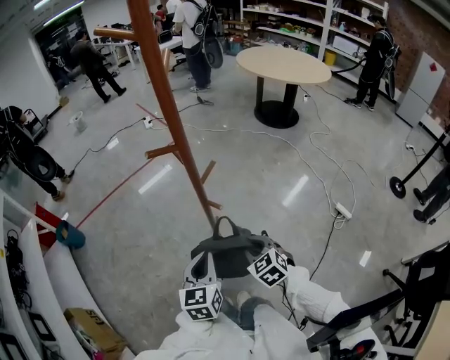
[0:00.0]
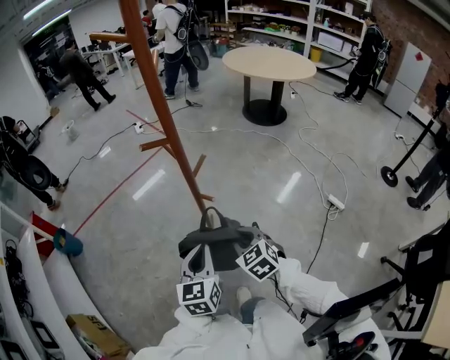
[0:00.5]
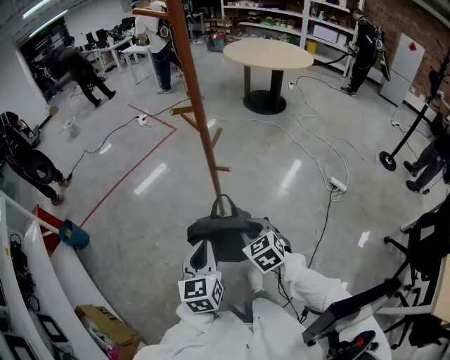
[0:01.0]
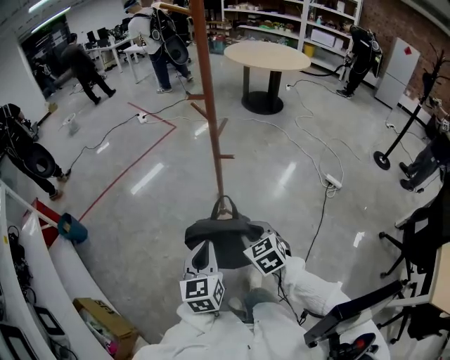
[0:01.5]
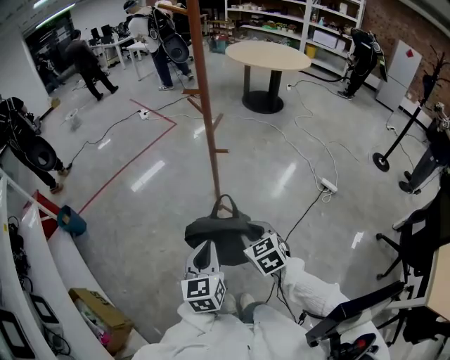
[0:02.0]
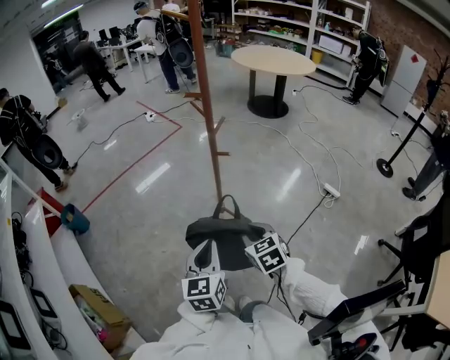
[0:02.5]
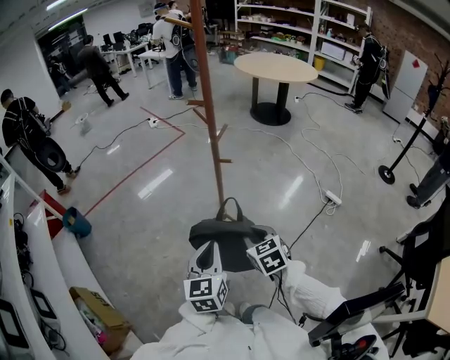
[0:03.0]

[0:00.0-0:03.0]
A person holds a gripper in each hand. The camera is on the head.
0:00.0 to 0:01.5: Both grippers move backward and to the left, roughly 20 cm.
0:01.5 to 0:03.0: The left gripper ends up about 5 cm from where it was.

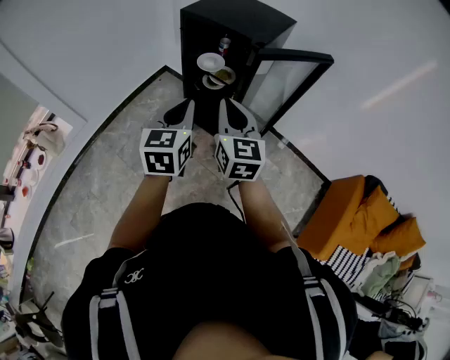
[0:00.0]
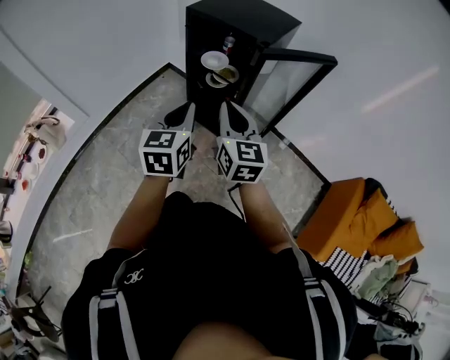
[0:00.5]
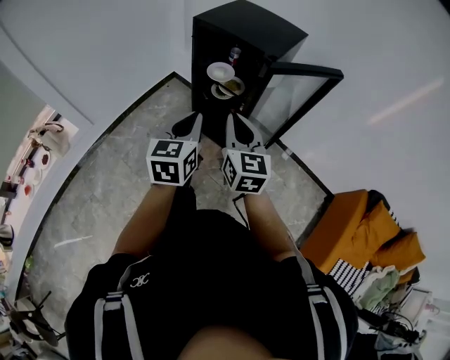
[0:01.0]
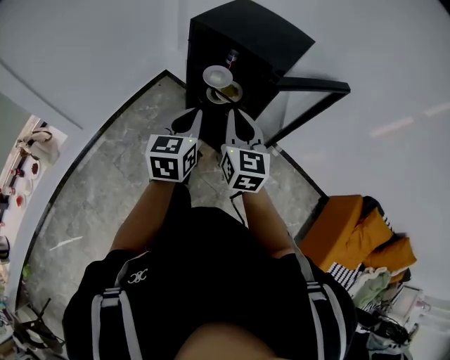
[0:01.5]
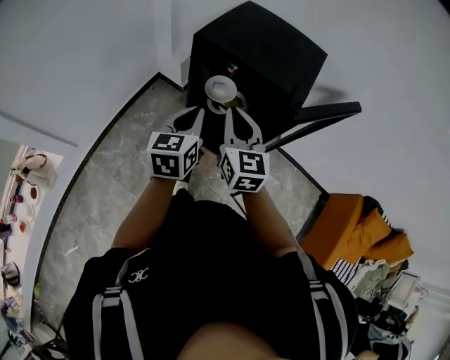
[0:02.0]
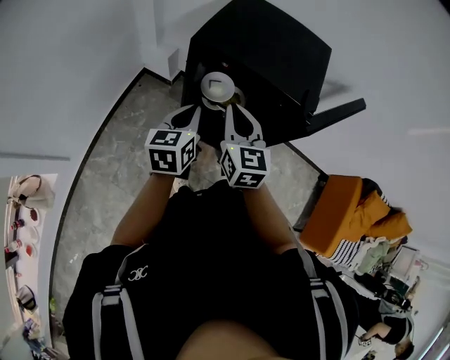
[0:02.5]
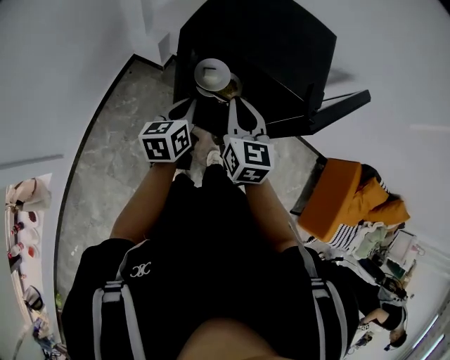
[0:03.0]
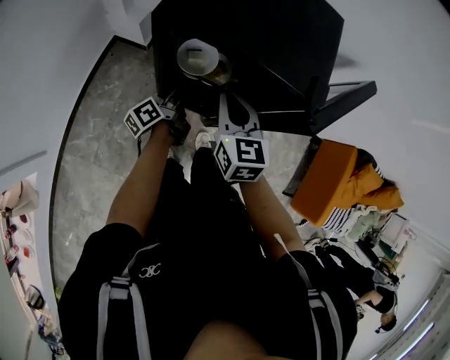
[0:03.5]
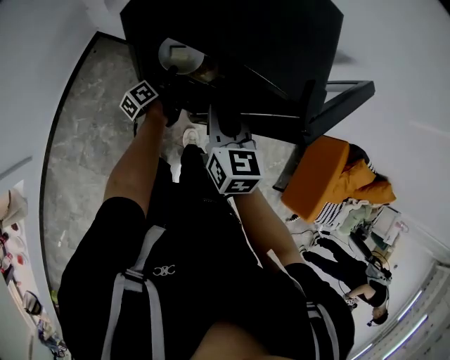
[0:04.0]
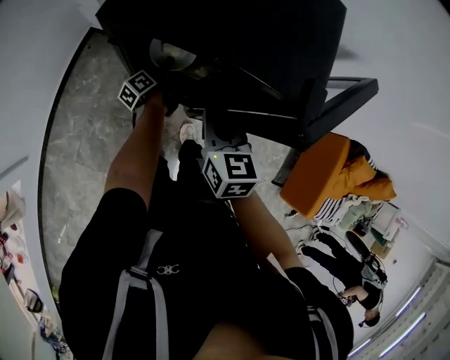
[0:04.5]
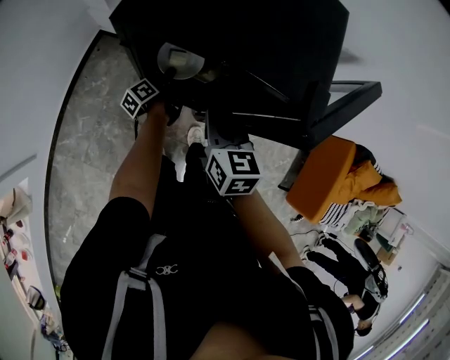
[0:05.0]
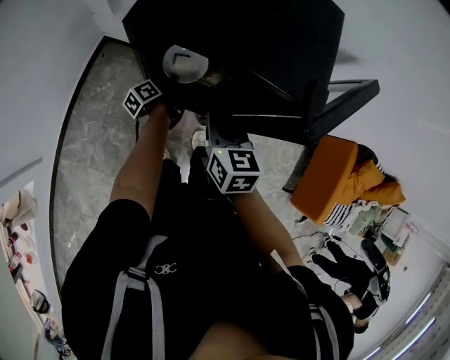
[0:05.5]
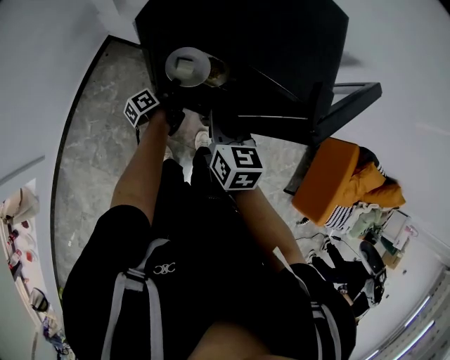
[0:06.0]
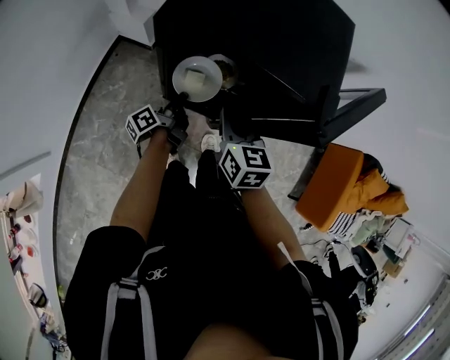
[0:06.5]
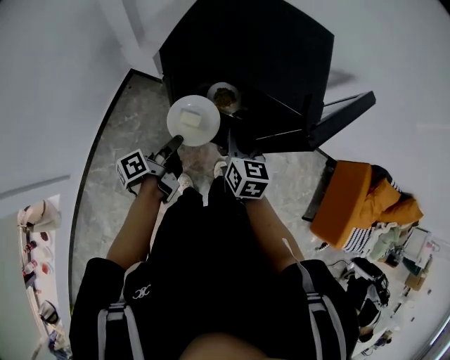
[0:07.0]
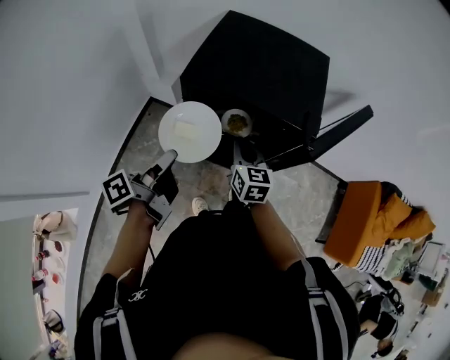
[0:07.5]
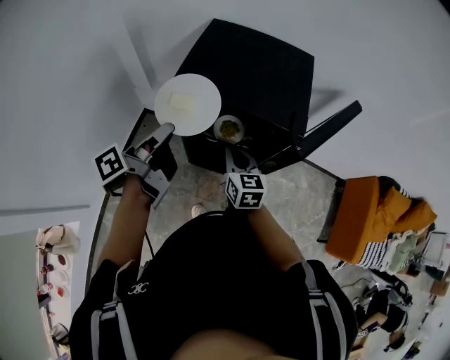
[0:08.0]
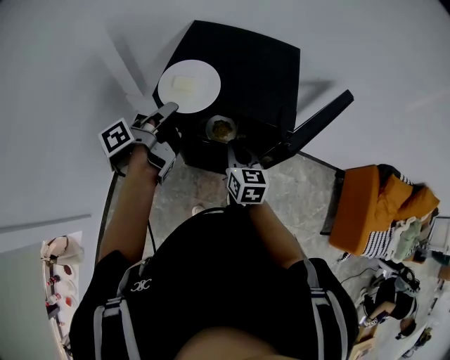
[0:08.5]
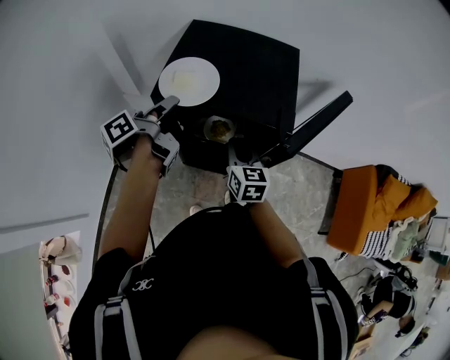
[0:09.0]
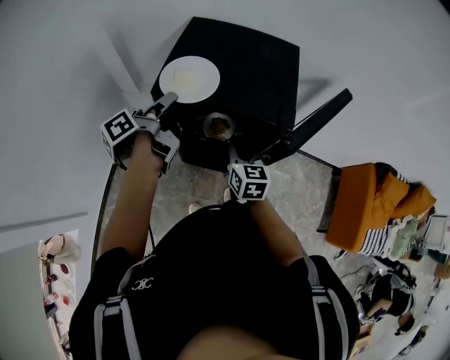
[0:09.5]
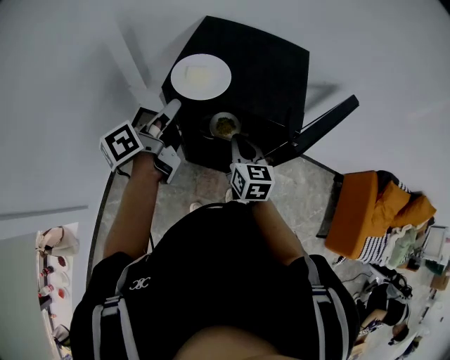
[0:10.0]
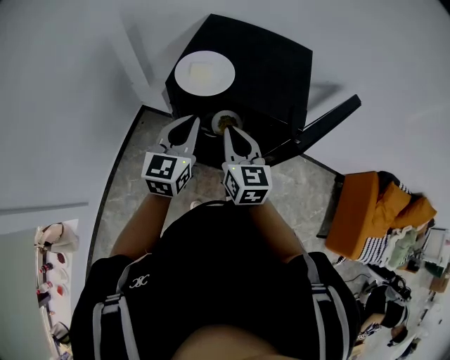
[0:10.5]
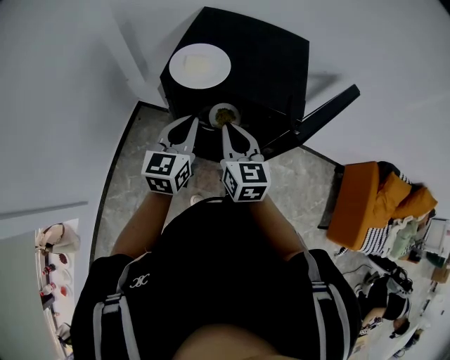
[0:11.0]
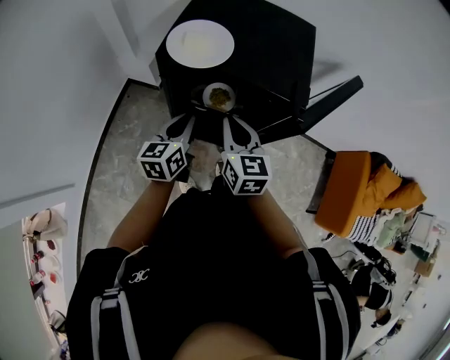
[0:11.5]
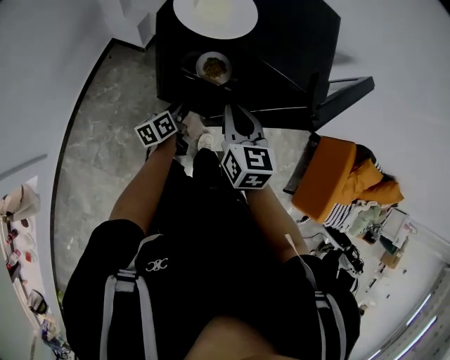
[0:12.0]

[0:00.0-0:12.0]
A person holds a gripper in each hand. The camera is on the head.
0:00.0 to 0:02.0: The left gripper goes approximately 25 cm forward. Meanwhile the right gripper is displaced forward and to the left by approximately 25 cm.
0:02.0 to 0:04.0: The right gripper moves downward and forward, about 15 cm, and swivels approximately 20 degrees, while the left gripper travels downward and forward by approximately 40 cm, rolls counterclockwise, seen from behind, by roughly 70 degrees, and opens up.
0:04.0 to 0:06.0: The left gripper closes its fingers.
0:06.0 to 0:08.0: The left gripper shifts some 40 cm upward, and turns by some 20 degrees.
0:08.0 to 0:10.0: The left gripper goes about 5 cm forward.
0:10.0 to 0:12.0: The left gripper is displaced downward by some 35 cm, rotates roughly 20 degrees, and opens, while the right gripper moves approximately 5 cm upward and comes back.

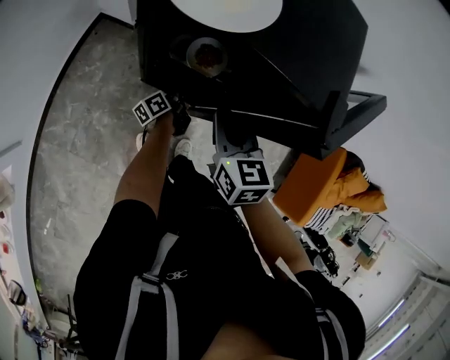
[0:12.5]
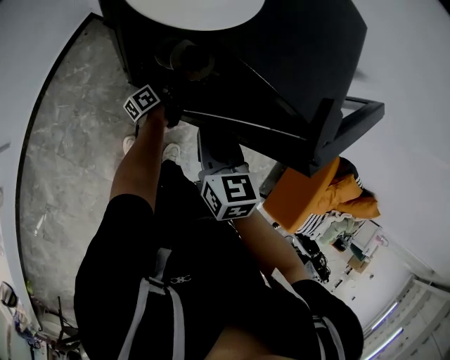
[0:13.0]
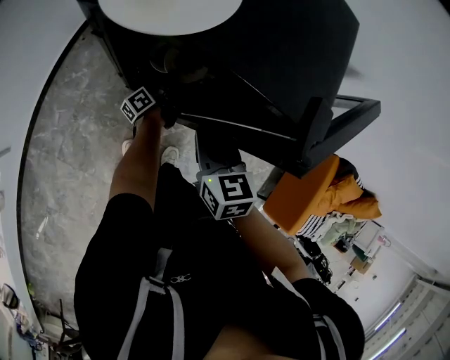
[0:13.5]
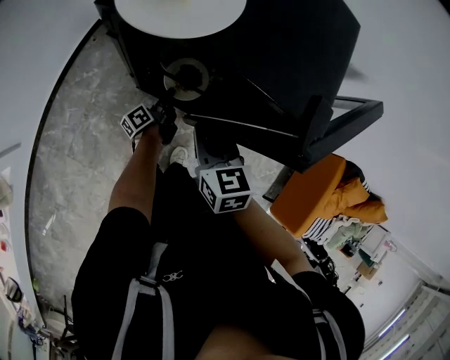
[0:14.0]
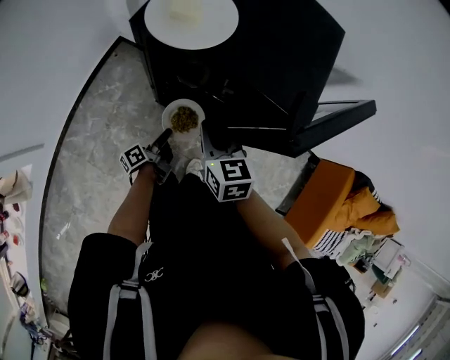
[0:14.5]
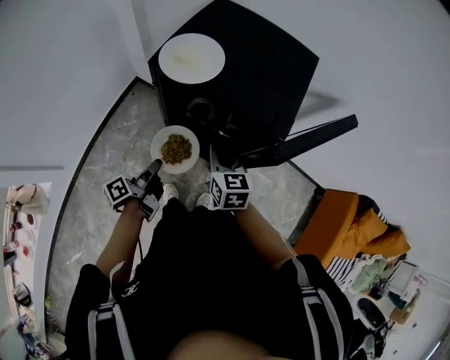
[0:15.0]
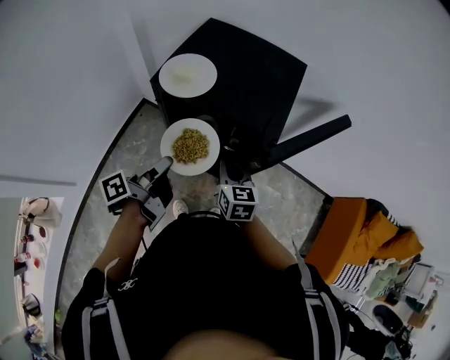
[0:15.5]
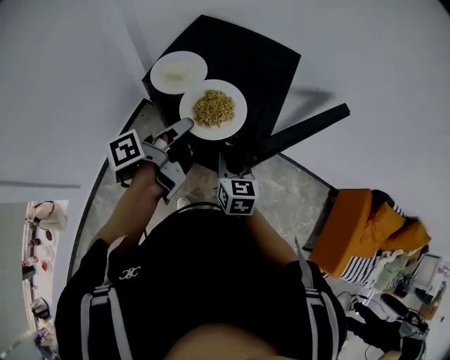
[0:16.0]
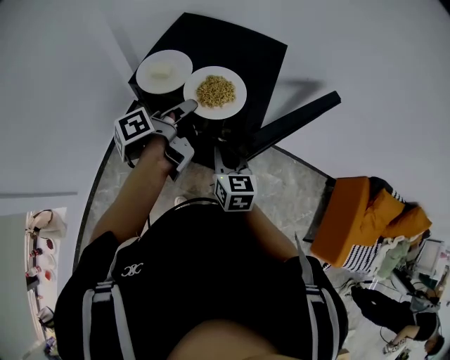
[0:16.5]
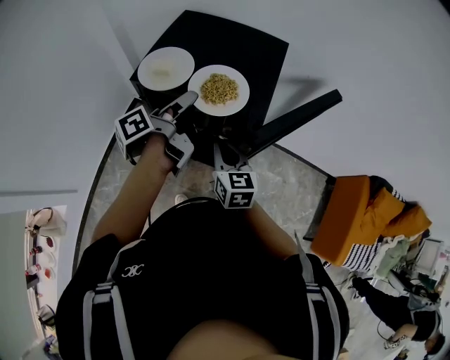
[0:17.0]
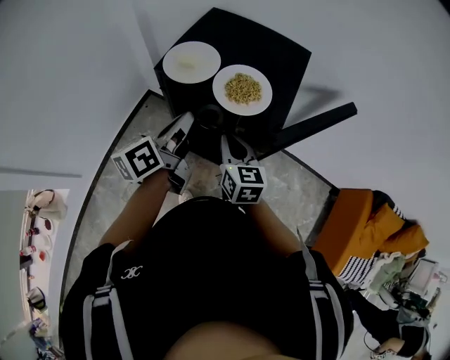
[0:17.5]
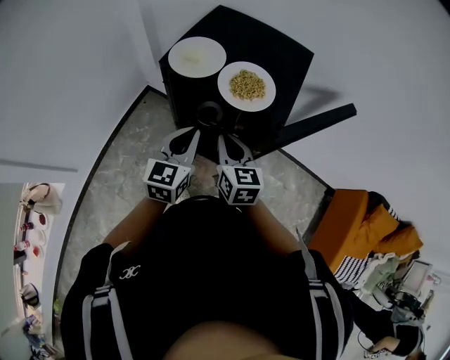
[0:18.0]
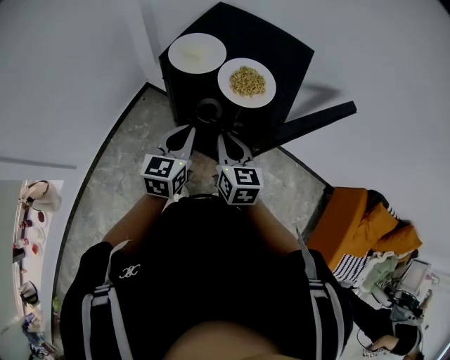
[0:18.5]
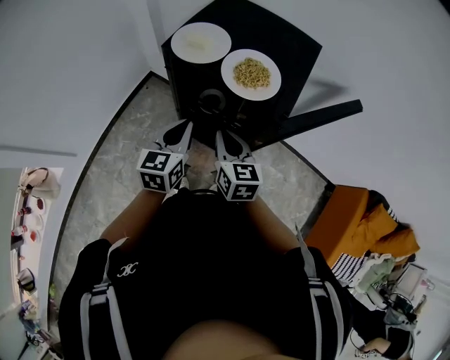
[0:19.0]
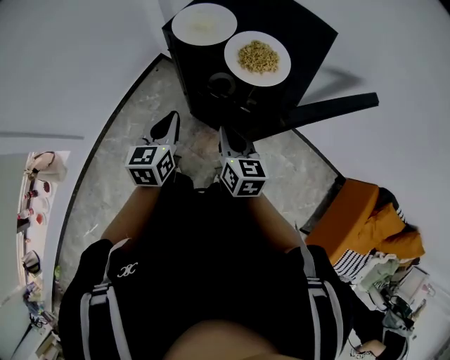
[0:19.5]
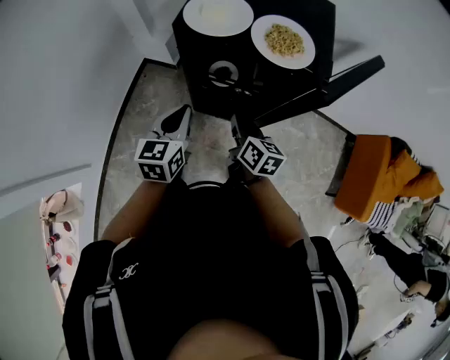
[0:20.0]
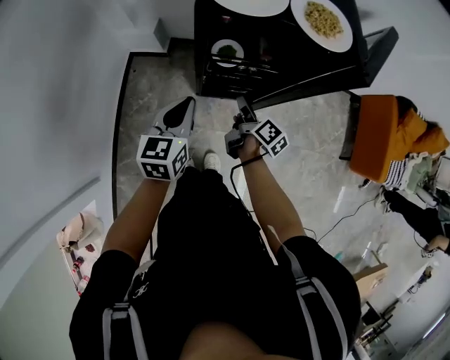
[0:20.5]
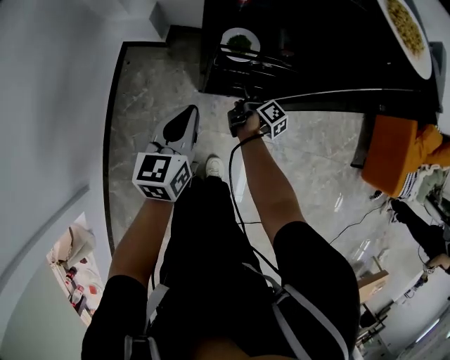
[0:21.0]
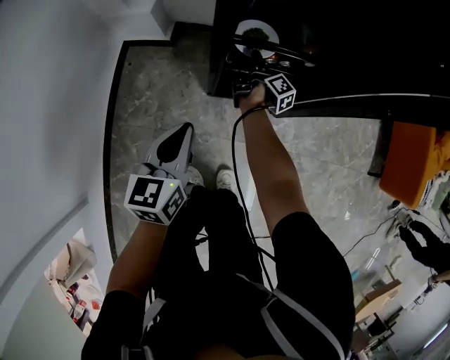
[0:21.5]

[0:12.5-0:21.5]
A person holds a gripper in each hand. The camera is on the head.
0:12.5 to 0:14.5: The left gripper shifts approximately 15 cm backward and to the left, and closes.
0:14.5 to 0:17.0: The left gripper moves upward, some 40 cm, and opens up. The right gripper moves upward and to the right, approximately 10 cm.
0:17.0 to 0:19.5: The right gripper changes place by about 5 cm. The left gripper moves downward, backward and to the left, about 20 cm, twists roughly 70 degrees clockwise, seen from behind, and closes up.
0:19.5 to 0:21.5: The right gripper shifts about 50 cm downward, twists approximately 70 degrees clockwise, seen from behind, and opens up. The left gripper moves downward, roughly 30 cm, and changes its angle by about 30 degrees.

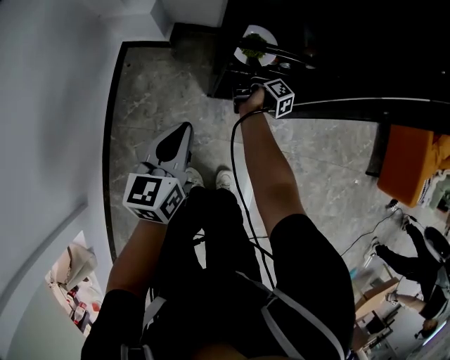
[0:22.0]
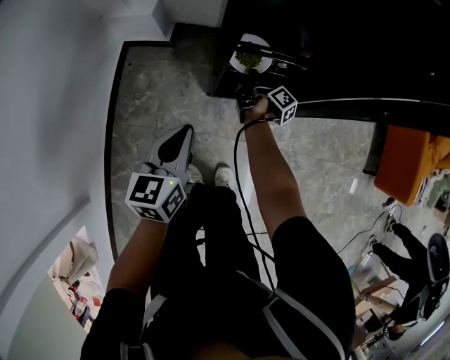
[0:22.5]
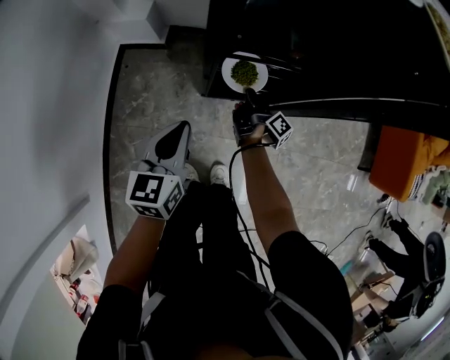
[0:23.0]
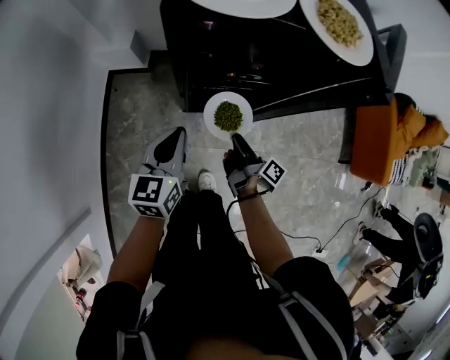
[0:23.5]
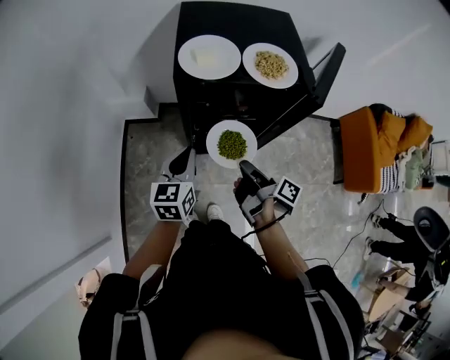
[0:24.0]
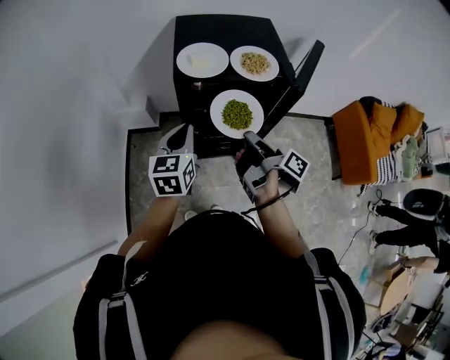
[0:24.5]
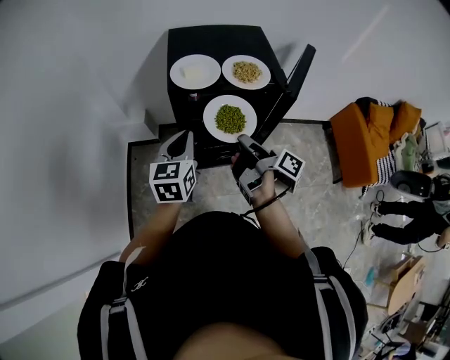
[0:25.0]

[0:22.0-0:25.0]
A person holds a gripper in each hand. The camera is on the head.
0:22.0 to 0:23.5: The left gripper travels upward by roughly 15 cm. The right gripper is displaced upward and backward by some 30 cm, and closes up.
0:23.5 to 0:25.0: The two grippers go roughly 30 cm upward.
